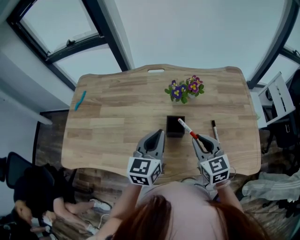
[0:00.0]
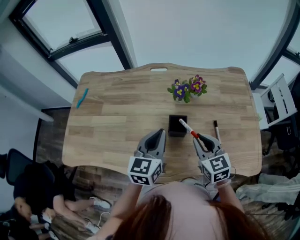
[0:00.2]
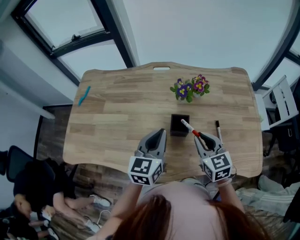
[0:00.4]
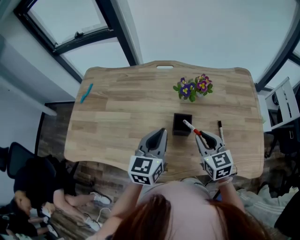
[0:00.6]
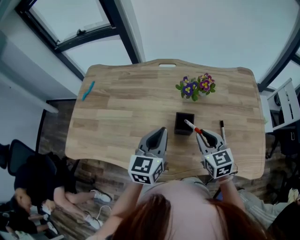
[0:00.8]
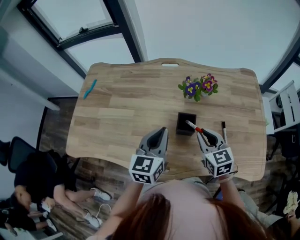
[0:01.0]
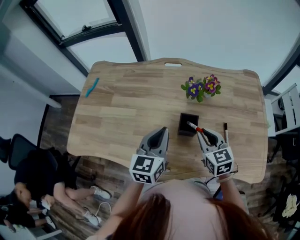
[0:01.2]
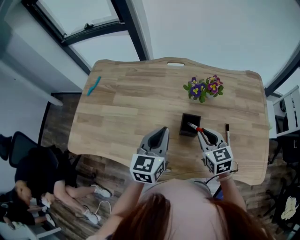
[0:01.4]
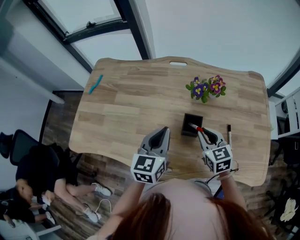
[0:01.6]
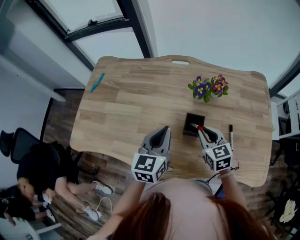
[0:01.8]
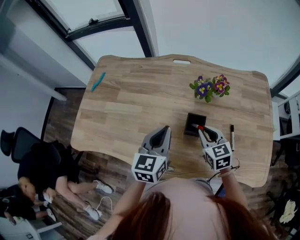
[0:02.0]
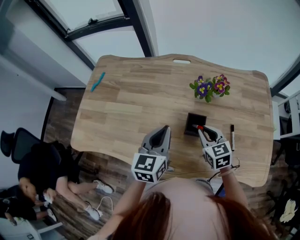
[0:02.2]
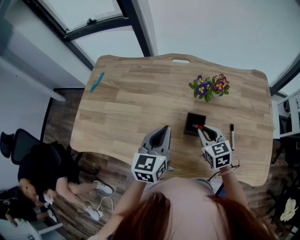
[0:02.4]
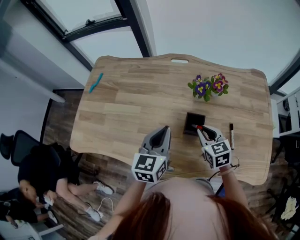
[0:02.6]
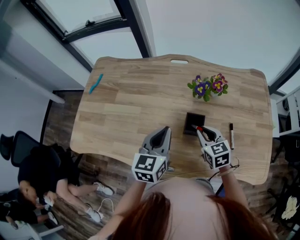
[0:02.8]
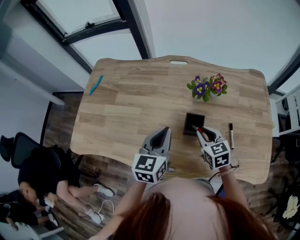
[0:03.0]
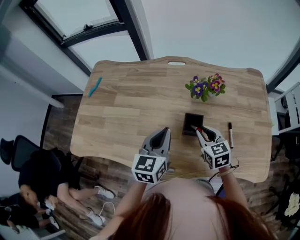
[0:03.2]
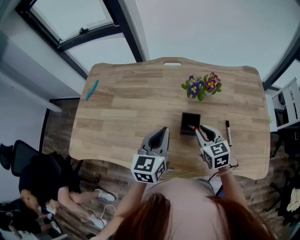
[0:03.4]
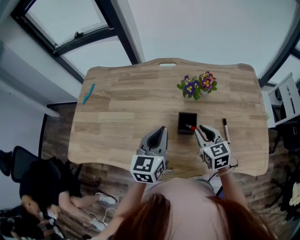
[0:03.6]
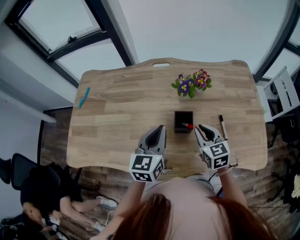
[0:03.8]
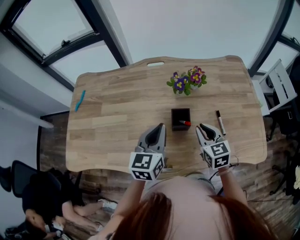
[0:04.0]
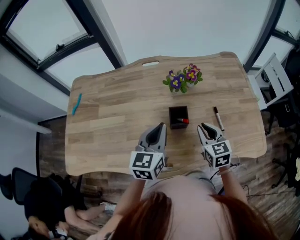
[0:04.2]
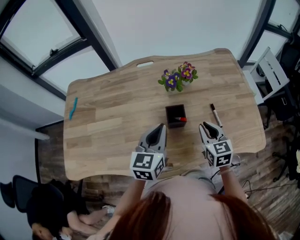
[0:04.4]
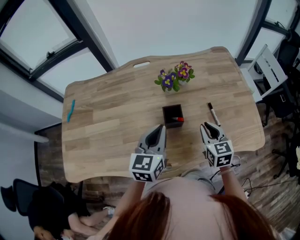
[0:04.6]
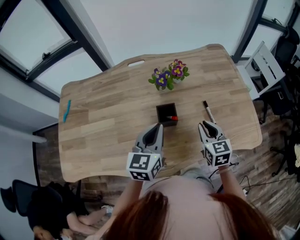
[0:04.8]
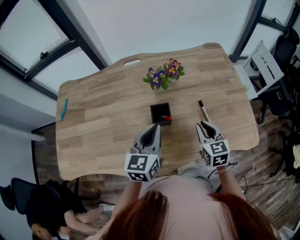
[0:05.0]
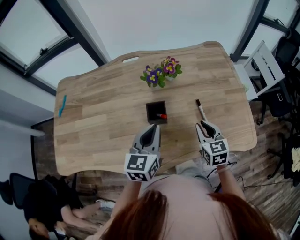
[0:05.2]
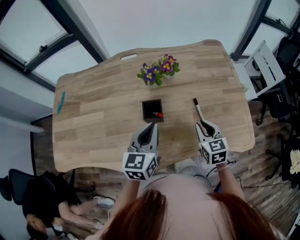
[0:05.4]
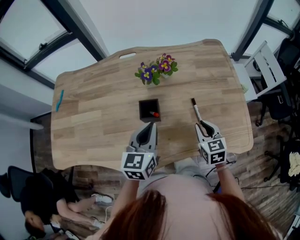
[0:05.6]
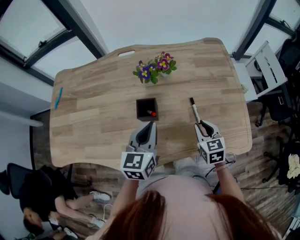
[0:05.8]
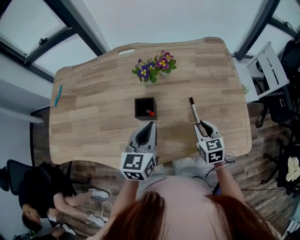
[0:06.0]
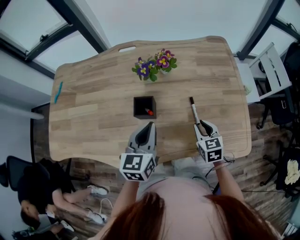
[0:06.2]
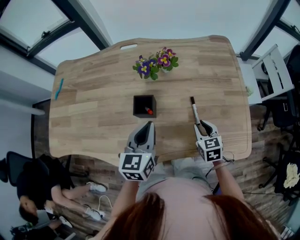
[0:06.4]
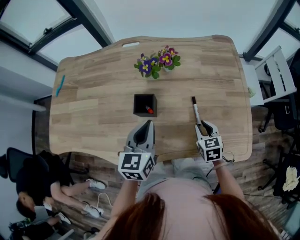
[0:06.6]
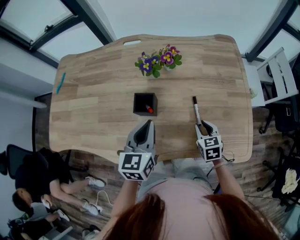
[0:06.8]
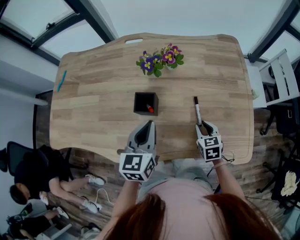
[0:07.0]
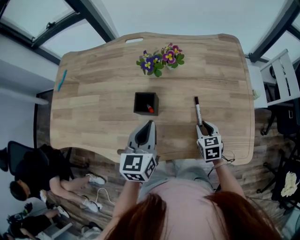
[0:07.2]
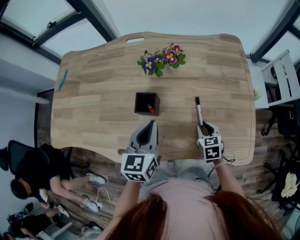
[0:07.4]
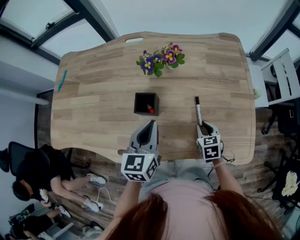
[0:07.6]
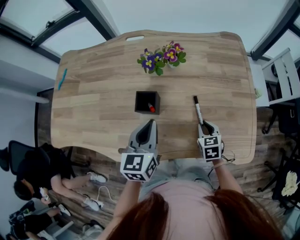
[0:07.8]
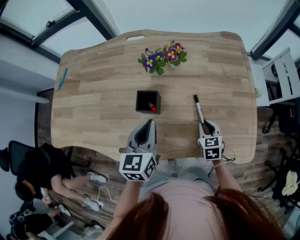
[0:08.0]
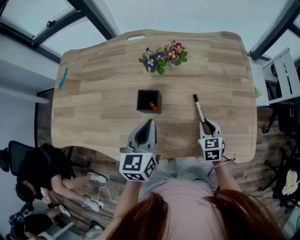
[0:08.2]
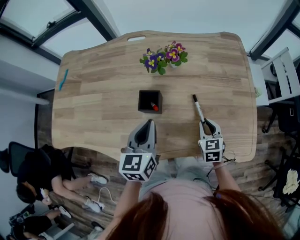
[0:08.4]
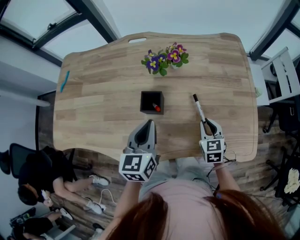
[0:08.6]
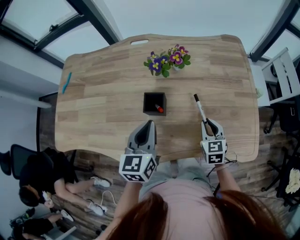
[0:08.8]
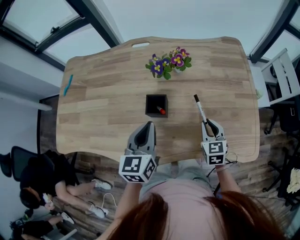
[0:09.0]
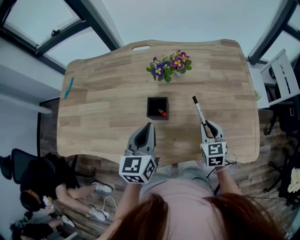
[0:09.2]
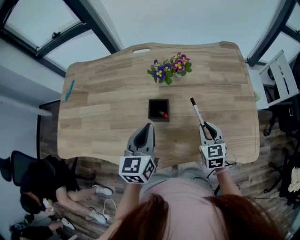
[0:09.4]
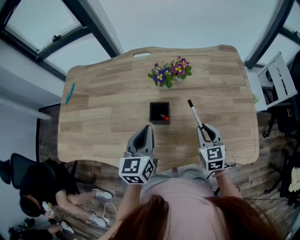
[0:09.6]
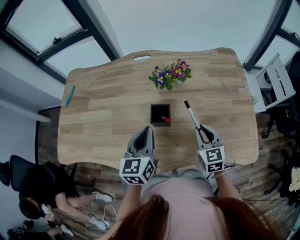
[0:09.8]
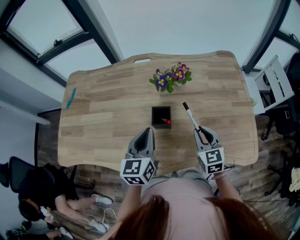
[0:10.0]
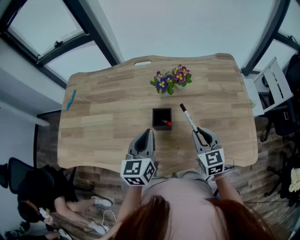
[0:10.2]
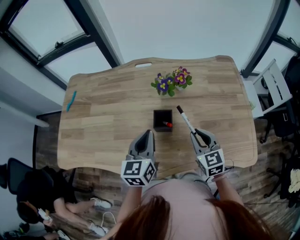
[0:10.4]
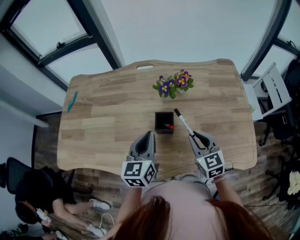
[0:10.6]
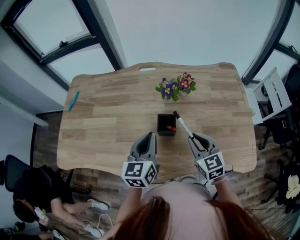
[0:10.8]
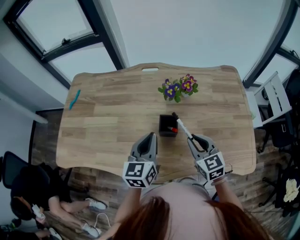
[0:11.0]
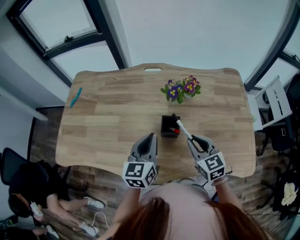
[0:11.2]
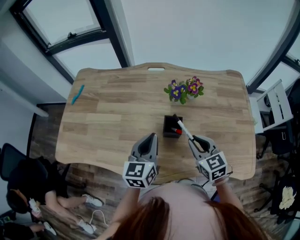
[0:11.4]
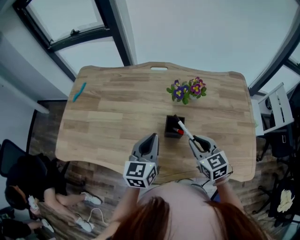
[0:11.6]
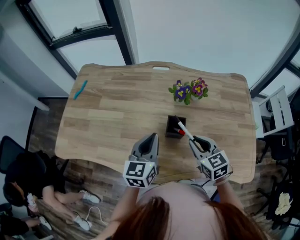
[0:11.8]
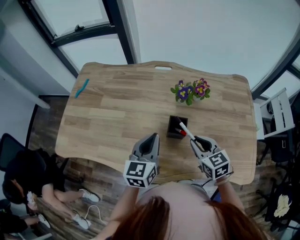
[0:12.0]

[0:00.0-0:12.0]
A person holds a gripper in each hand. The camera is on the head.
0:00.0 to 0:01.6: The right gripper moves downward, roughly 5 cm.
0:01.6 to 0:03.0: The grippers make only small movements.
0:03.0 to 0:04.4: The right gripper travels to the right and backward by roughly 10 cm, and swivels roughly 20 degrees.
0:04.4 to 0:06.0: The left gripper shifts approximately 10 cm to the right. Meanwhile the right gripper is displaced to the right and downward by roughly 15 cm.
0:06.0 to 0:07.6: The right gripper is displaced downward by about 10 cm.
0:07.6 to 0:09.0: The left gripper heads to the left, covering some 5 cm, while the right gripper moves upward, roughly 5 cm.
0:09.0 to 0:10.4: The right gripper goes about 10 cm to the left and upward.
0:10.4 to 0:12.0: The right gripper shifts approximately 5 cm to the left.

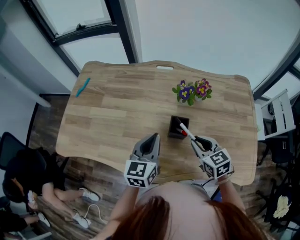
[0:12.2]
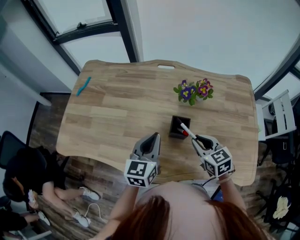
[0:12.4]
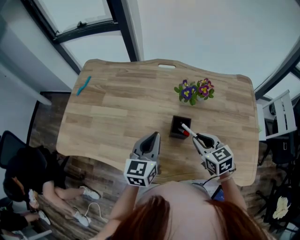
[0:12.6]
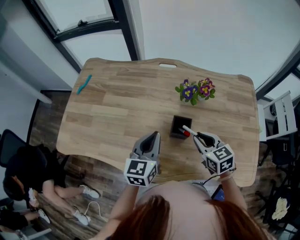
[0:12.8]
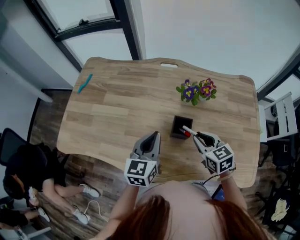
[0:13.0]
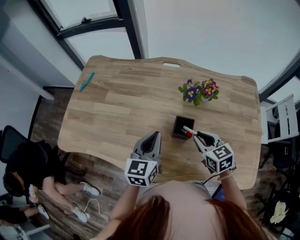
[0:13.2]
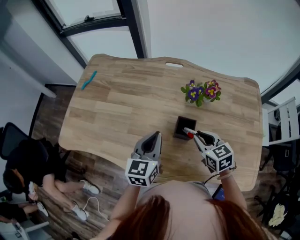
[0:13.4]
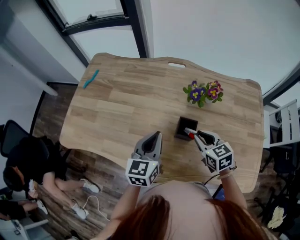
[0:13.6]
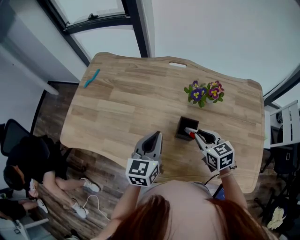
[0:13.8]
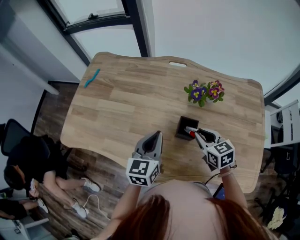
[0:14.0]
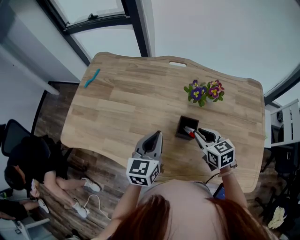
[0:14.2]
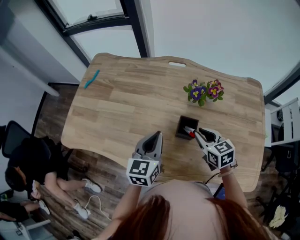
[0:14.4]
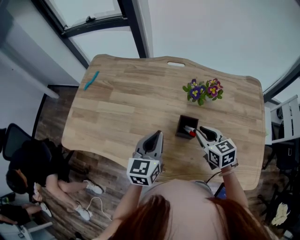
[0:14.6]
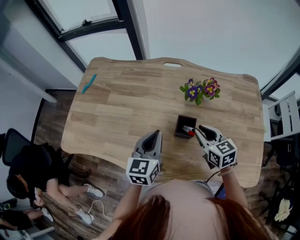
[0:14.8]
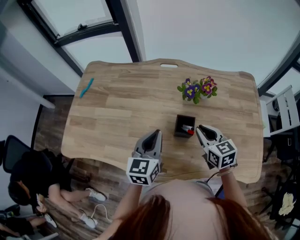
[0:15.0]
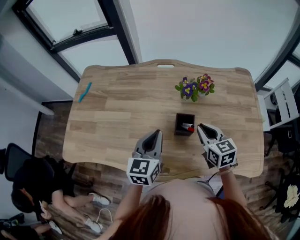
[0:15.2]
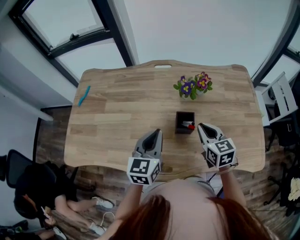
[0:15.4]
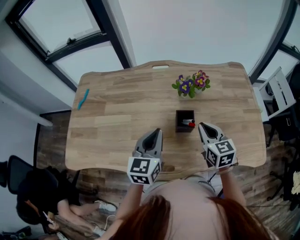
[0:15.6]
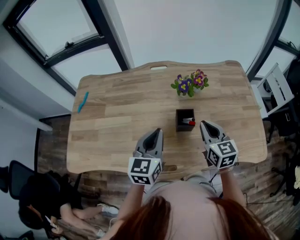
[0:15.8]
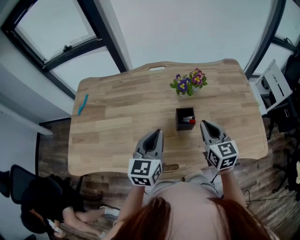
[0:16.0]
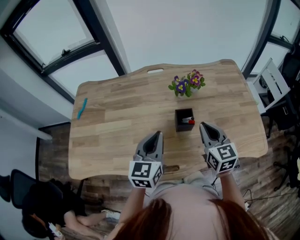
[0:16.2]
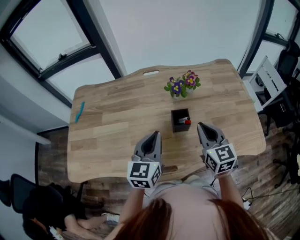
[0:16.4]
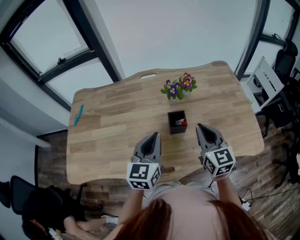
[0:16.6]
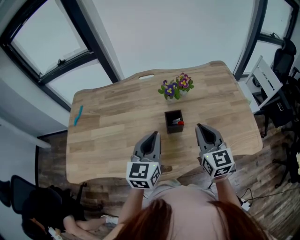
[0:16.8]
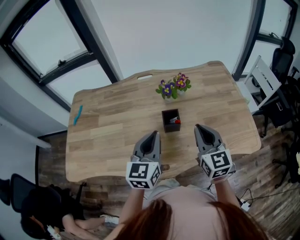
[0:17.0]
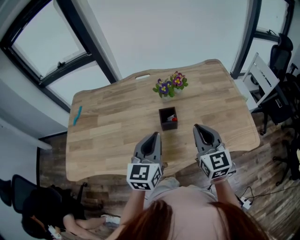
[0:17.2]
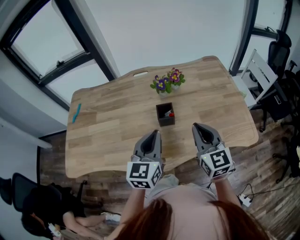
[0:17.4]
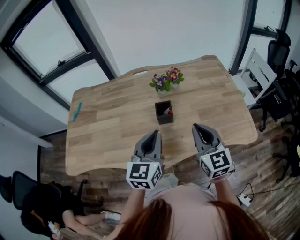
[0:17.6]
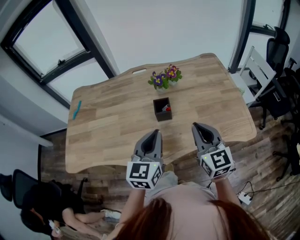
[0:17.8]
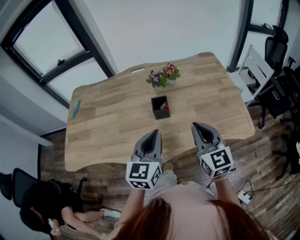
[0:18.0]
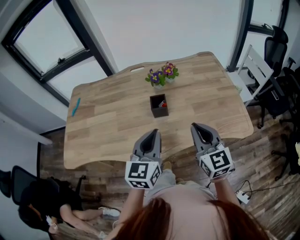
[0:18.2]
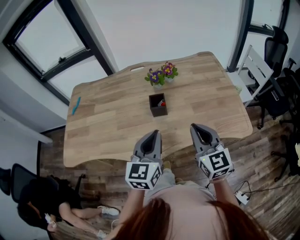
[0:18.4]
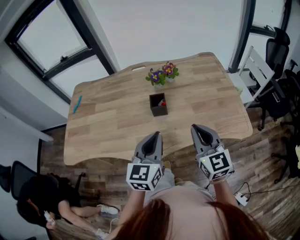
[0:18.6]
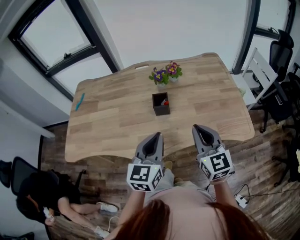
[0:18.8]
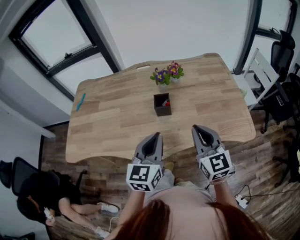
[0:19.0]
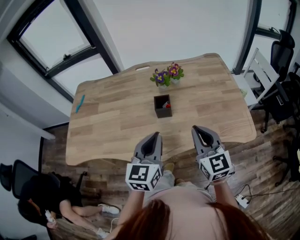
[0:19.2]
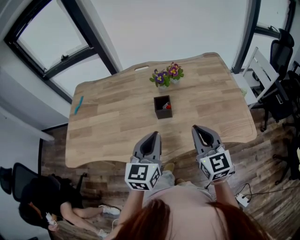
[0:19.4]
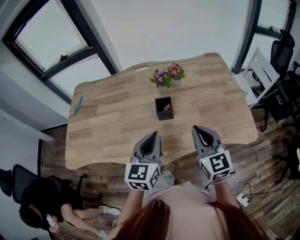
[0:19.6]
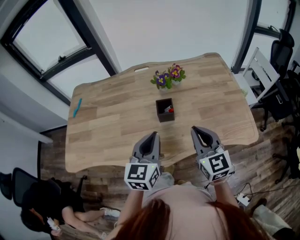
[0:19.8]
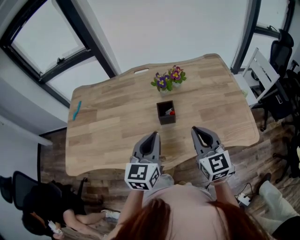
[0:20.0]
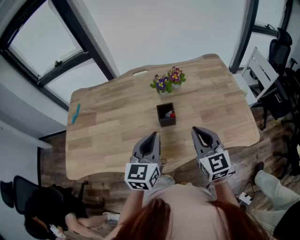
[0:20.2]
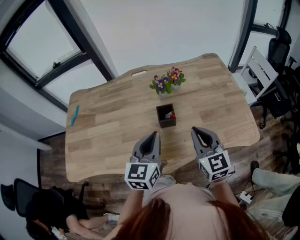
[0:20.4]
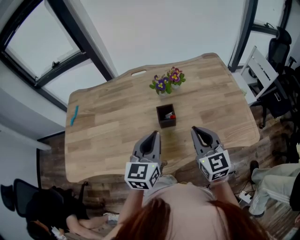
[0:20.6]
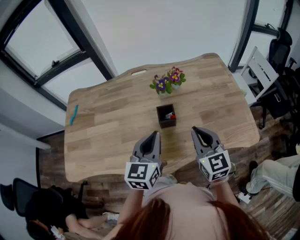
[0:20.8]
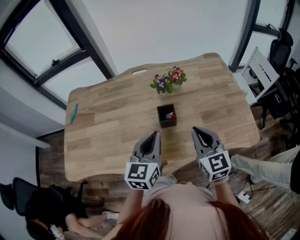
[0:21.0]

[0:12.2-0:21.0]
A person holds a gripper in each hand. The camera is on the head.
0:12.2 to 0:15.2: There are only small adjustments of the grippers.
0:15.2 to 0:16.6: The right gripper moves upward and backward, approximately 10 cm, and swivels roughly 20 degrees. Meanwhile the left gripper shifts by approximately 5 cm.
0:16.6 to 0:18.0: Both grippers move backward and to the right, approximately 15 cm.
0:18.0 to 0:19.6: The grippers make only small movements.
0:19.6 to 0:21.0: The two grippers go approximately 5 cm forward.

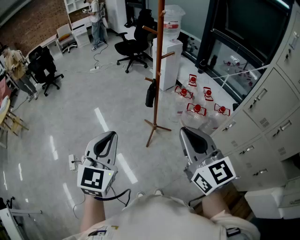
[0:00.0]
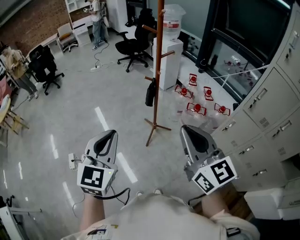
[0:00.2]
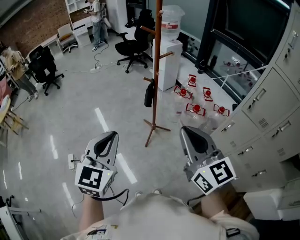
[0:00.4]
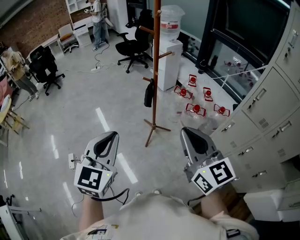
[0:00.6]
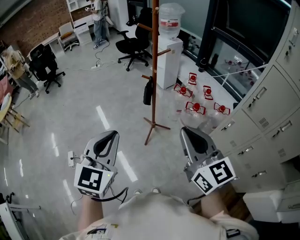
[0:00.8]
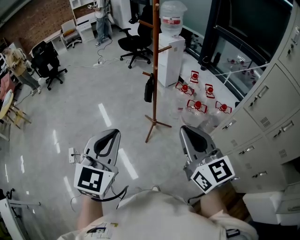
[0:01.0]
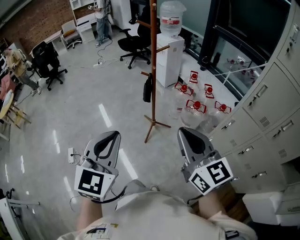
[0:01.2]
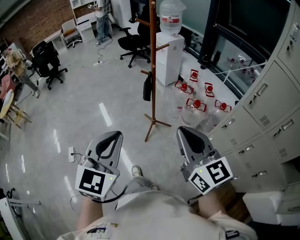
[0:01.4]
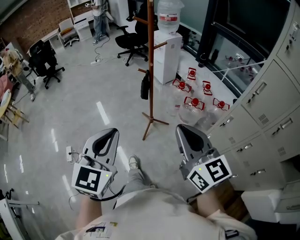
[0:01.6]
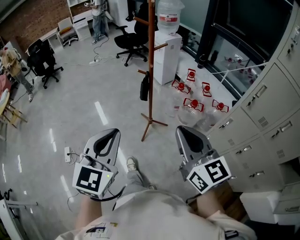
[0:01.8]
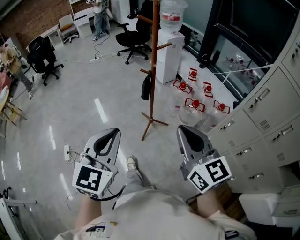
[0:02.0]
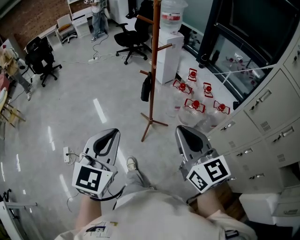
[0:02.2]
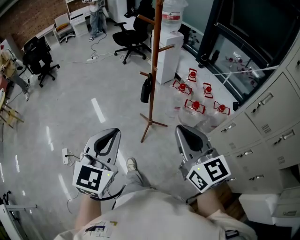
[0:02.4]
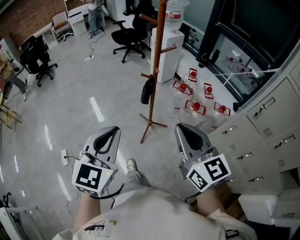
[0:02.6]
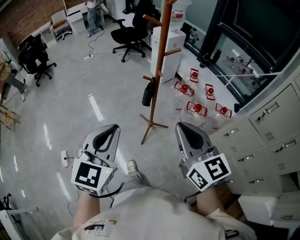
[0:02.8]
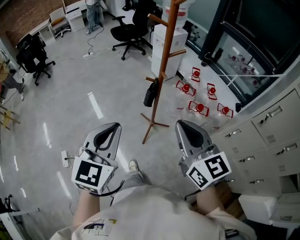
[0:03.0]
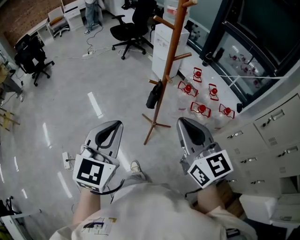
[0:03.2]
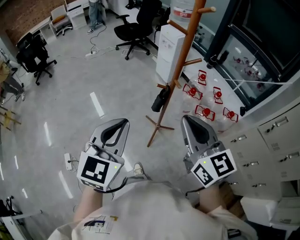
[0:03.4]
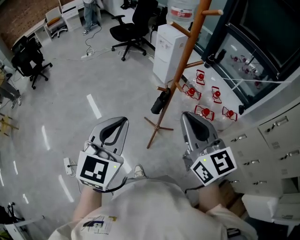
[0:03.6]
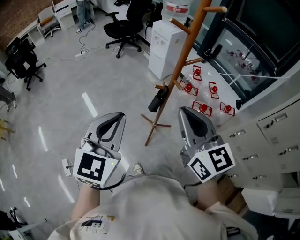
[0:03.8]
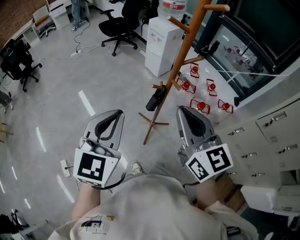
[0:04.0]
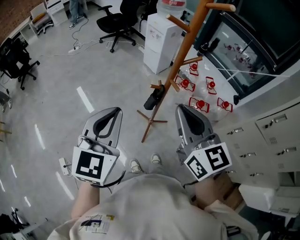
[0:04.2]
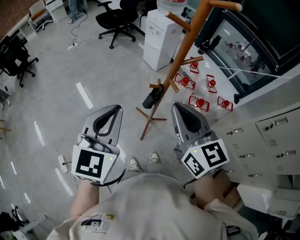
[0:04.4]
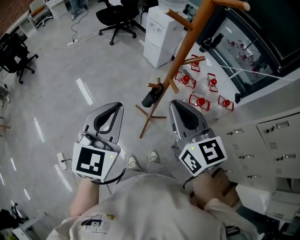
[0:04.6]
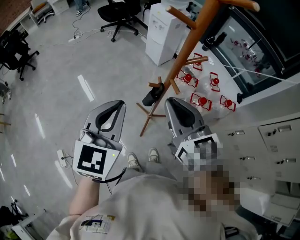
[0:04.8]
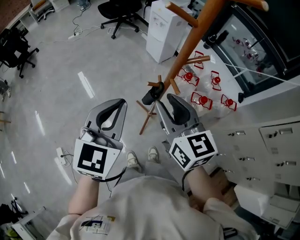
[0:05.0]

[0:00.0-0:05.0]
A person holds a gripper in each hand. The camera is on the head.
0:00.0 to 0:01.6: The two grippers go approximately 5 cm to the right.
0:01.6 to 0:03.4: The left gripper moves forward, about 25 cm, while the right gripper goes some 30 cm forward and to the left.
0:03.4 to 0:05.0: The left gripper heads forward, covering about 15 cm. The right gripper travels forward and downward by approximately 20 cm, and opens its fingers.
